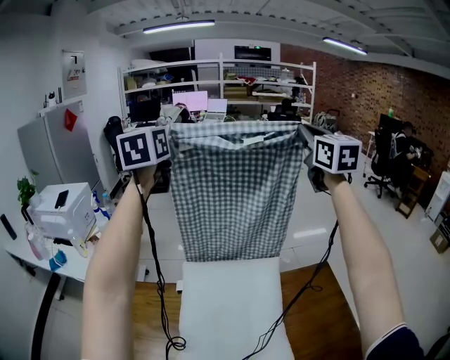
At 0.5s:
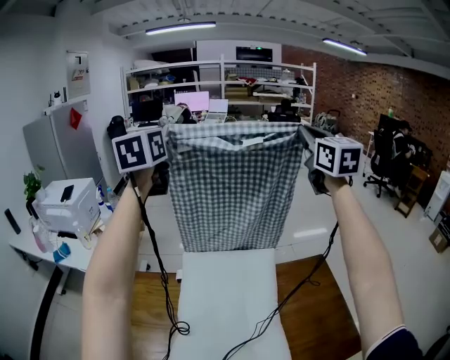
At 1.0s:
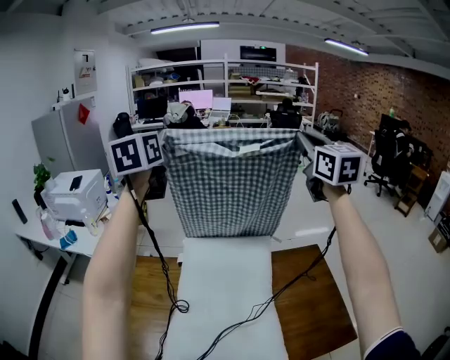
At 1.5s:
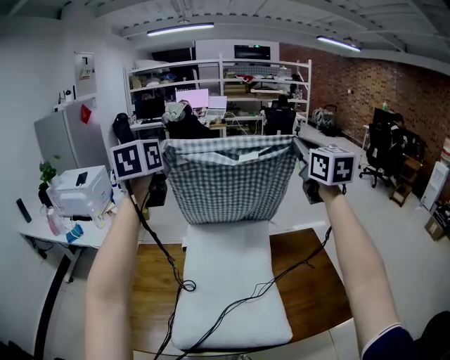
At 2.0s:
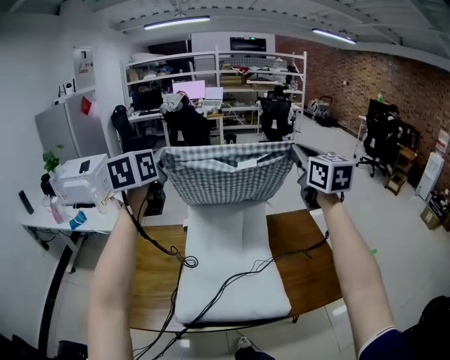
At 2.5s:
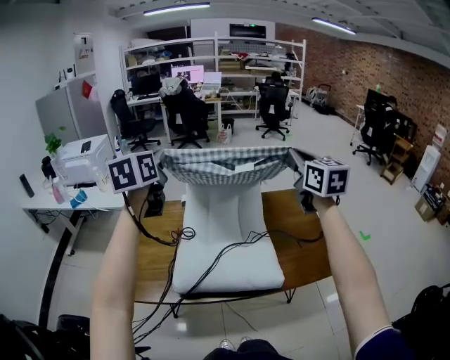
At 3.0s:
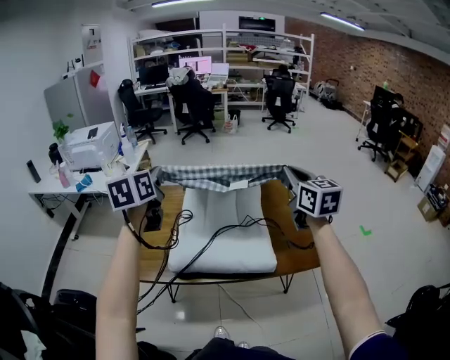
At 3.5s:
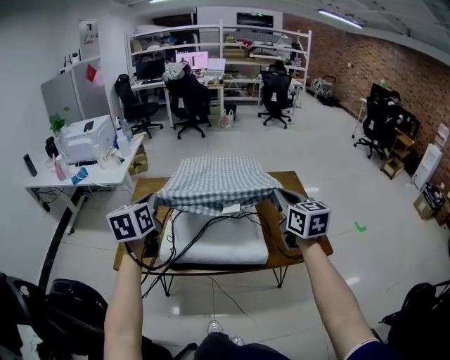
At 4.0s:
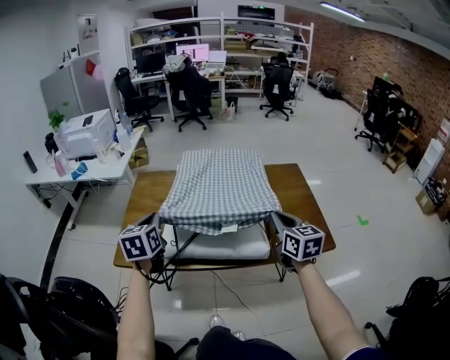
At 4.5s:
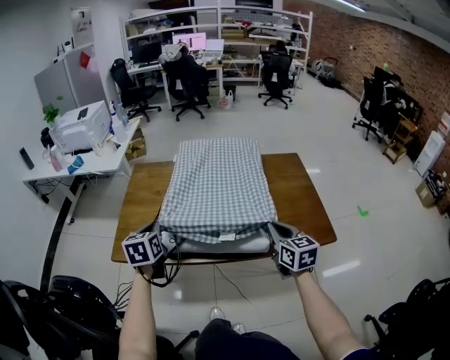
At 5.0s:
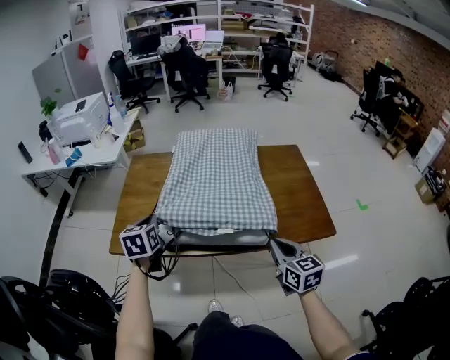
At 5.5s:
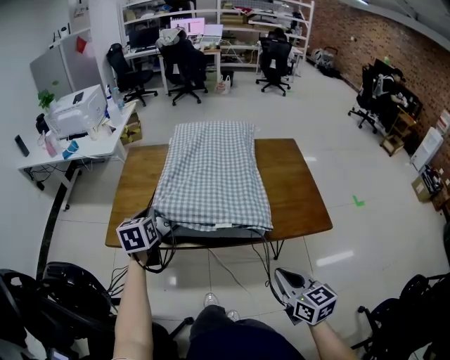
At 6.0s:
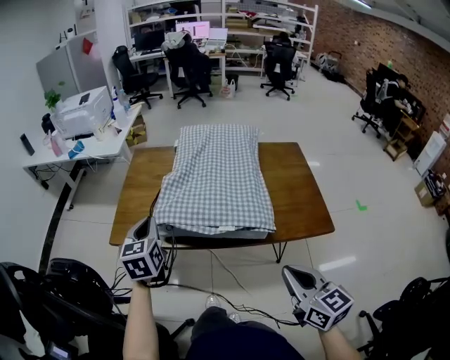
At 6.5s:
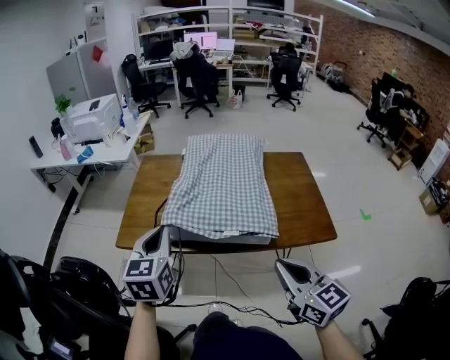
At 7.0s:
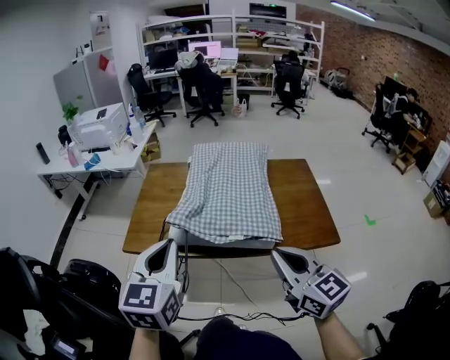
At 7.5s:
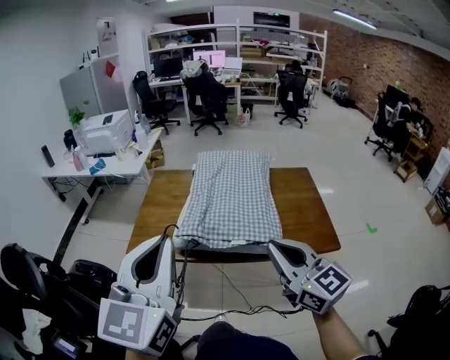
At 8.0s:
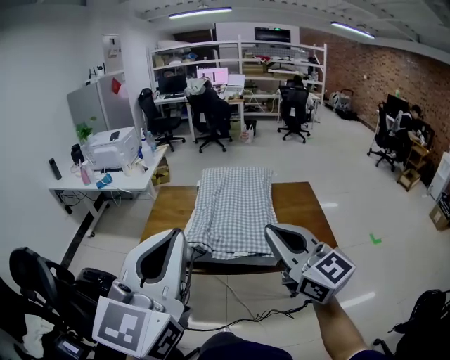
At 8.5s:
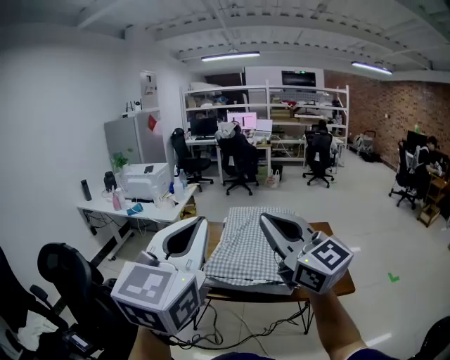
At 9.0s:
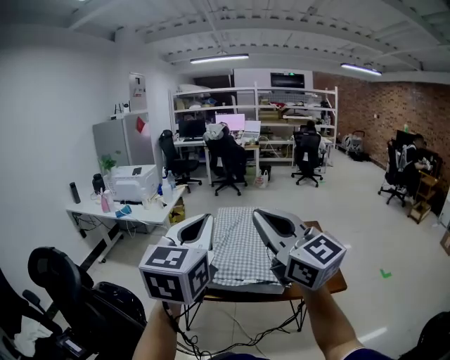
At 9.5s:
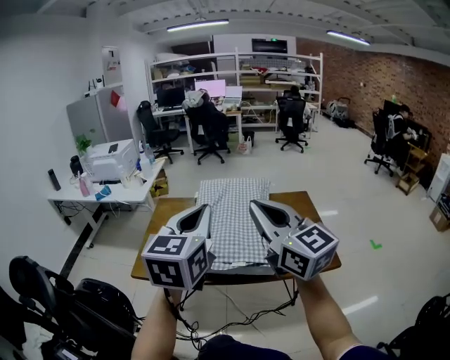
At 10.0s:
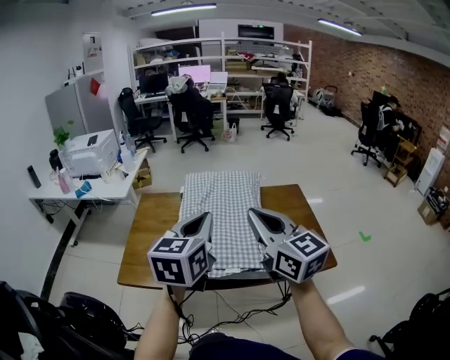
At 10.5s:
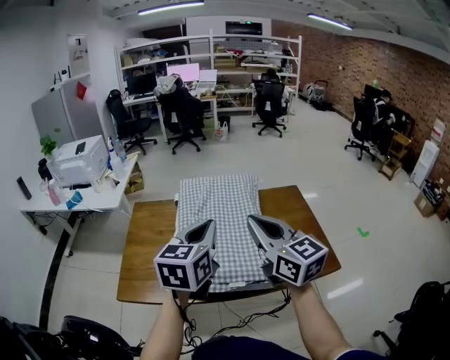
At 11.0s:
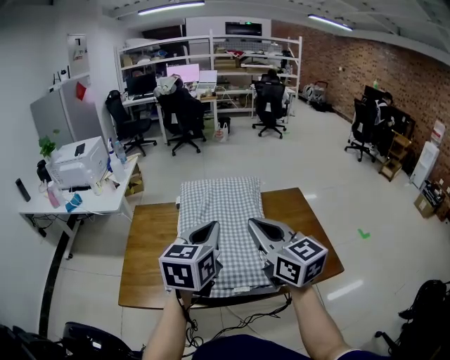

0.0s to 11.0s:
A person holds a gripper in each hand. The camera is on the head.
0.0s to 2.0s: Both grippers travel together backward, approximately 30 cm.
2.0s to 3.5s: Both grippers travel together downward and backward, some 30 cm.
3.5s to 5.5s: The right gripper heads backward and downward, covering some 30 cm. The left gripper heads downward, covering roughly 15 cm.
5.5s to 7.5s: The left gripper is displaced upward and backward by about 40 cm, and points its fingers some 30 degrees further upward, while the right gripper is displaced upward by roughly 20 cm, and rotates approximately 30 degrees.
7.5s to 9.0s: The right gripper goes approximately 20 cm upward, and swivels about 20 degrees. Meanwhile the left gripper is displaced upward and to the right by roughly 10 cm.
9.0s to 11.0s: The grippers both shift forward and downward by about 25 cm. The left gripper turns by roughly 30 degrees. Meanwhile the right gripper rotates some 30 degrees.

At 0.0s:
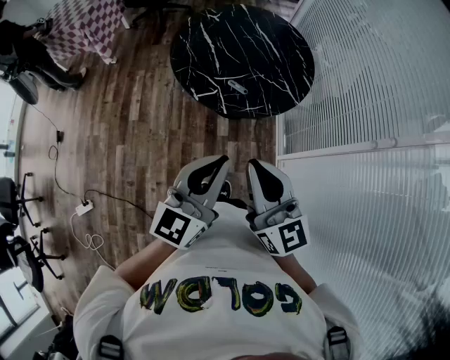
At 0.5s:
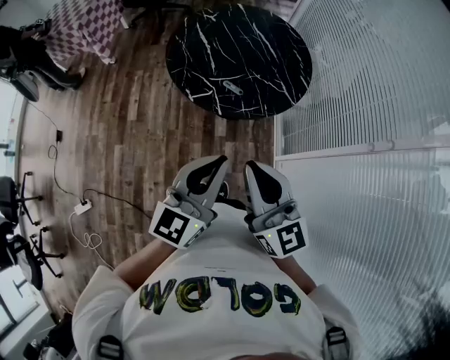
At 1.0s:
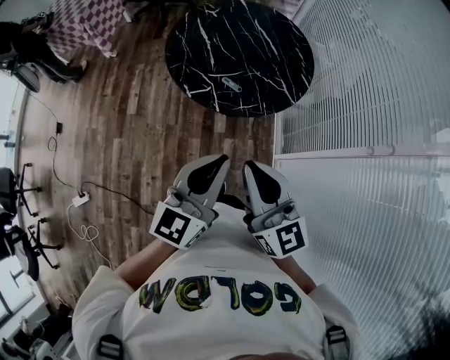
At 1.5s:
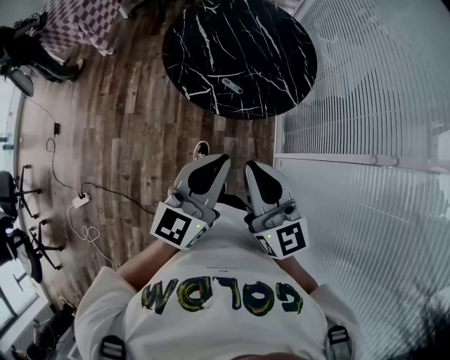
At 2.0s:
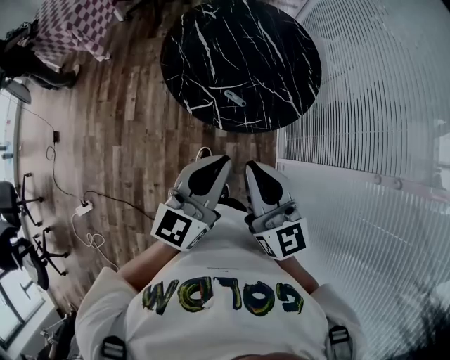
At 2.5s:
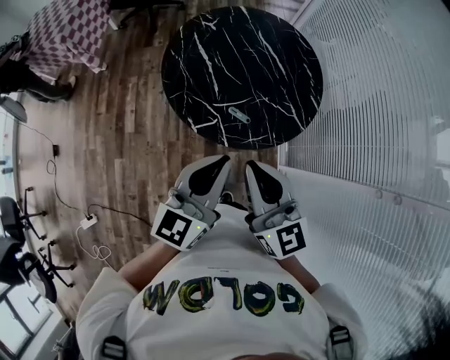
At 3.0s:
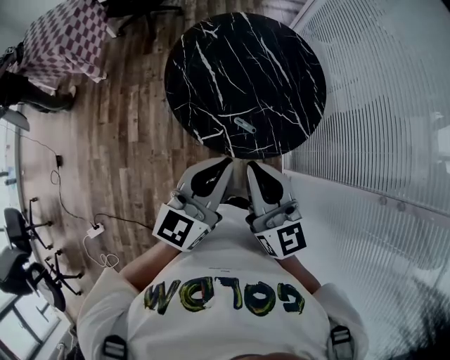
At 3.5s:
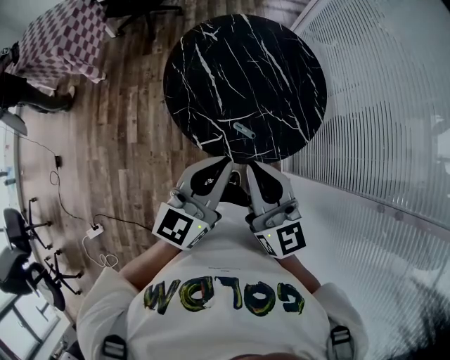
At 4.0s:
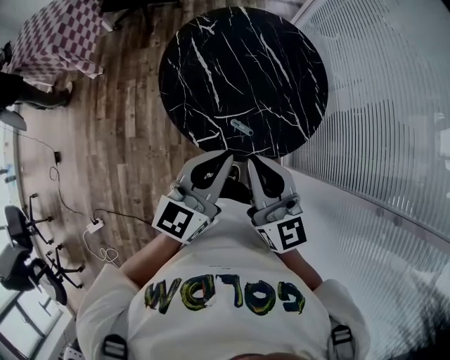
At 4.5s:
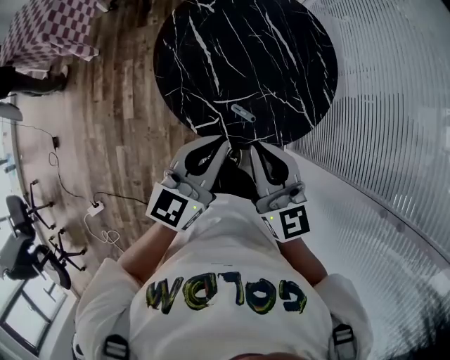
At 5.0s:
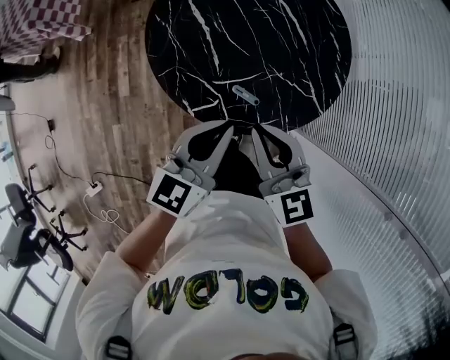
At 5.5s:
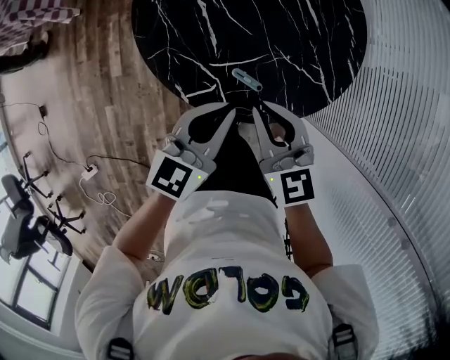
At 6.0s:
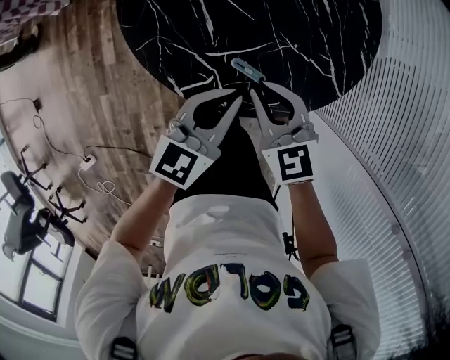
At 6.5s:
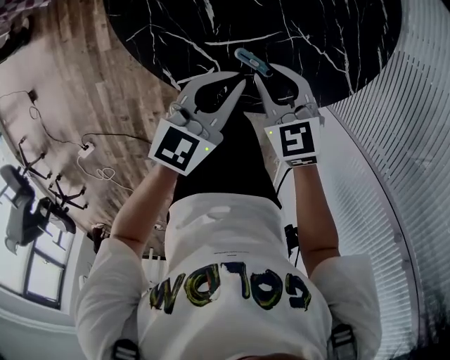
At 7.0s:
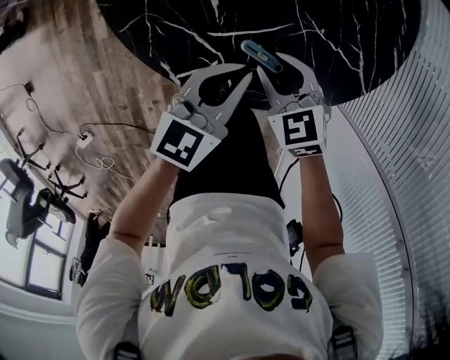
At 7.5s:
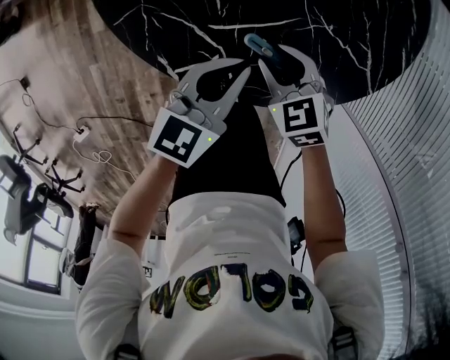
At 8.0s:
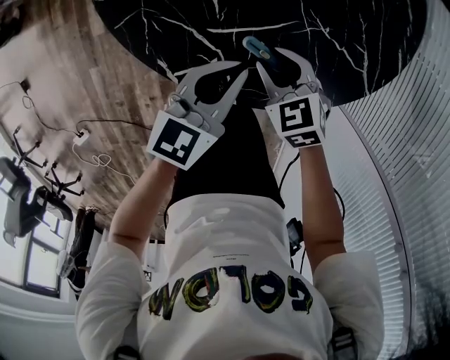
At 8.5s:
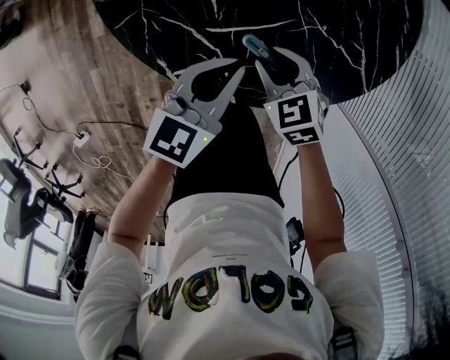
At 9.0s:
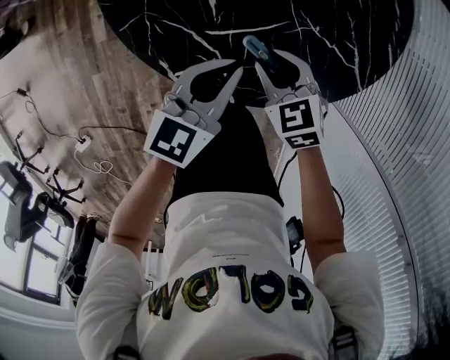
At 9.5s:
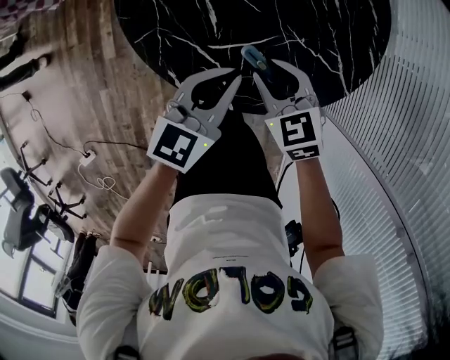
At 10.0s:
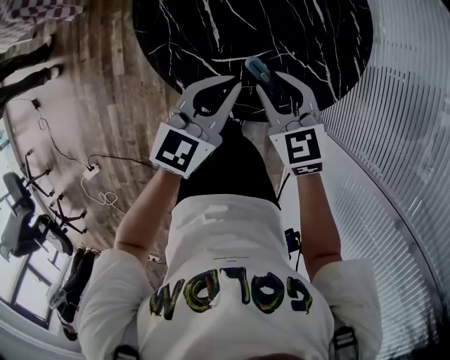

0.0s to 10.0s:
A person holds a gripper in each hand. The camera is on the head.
0.0s to 2.0s: Both grippers move forward, roughly 15 cm.
2.0s to 4.0s: The grippers both shift forward by some 15 cm.
4.0s to 6.0s: The two grippers go roughly 25 cm downward. The right gripper points its fingers approximately 30 degrees further downward.
6.0s to 8.0s: The right gripper goes roughly 15 cm downward, swivels roughly 20 degrees, and opens up. Meanwhile the left gripper travels downward by about 10 cm.
8.0s to 10.0s: The two grippers go roughly 15 cm upward. The right gripper rotates roughly 20 degrees.

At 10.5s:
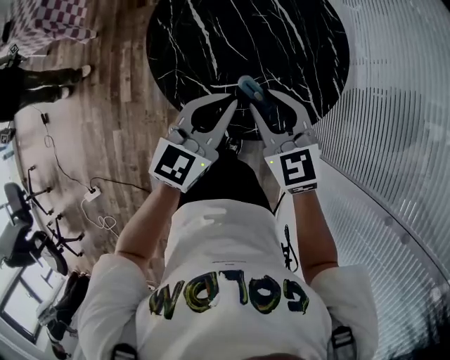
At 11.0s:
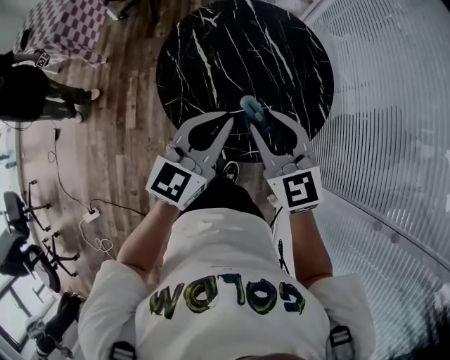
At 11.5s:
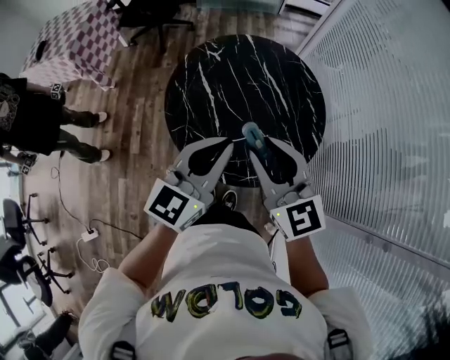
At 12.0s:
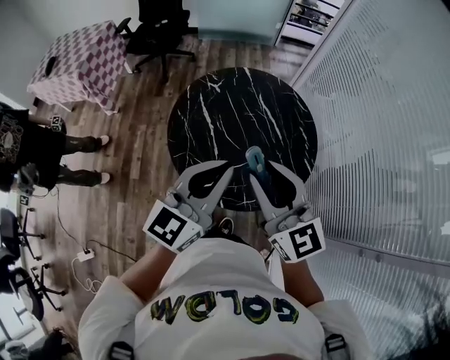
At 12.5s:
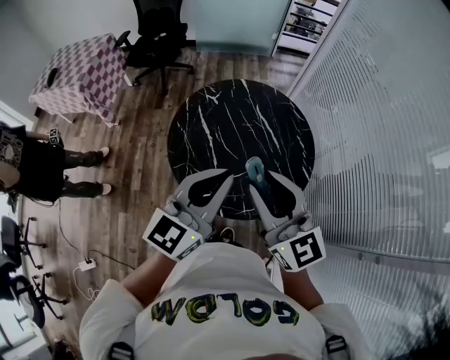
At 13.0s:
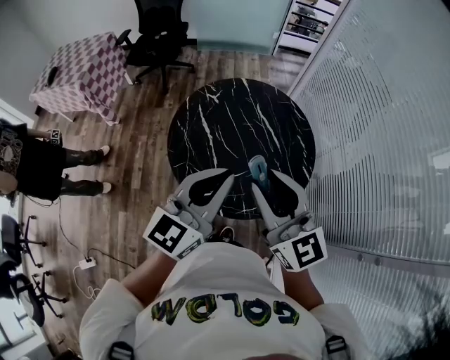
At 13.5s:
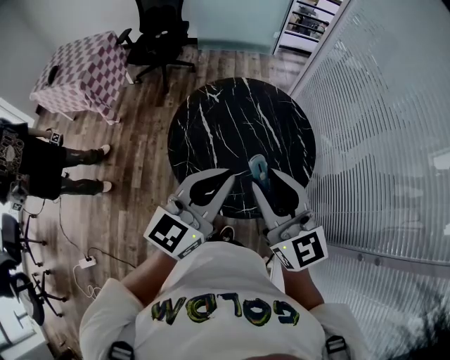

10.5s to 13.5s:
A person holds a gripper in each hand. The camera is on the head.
10.5s to 12.0s: Both grippers travel together upward, some 20 cm. The right gripper rotates roughly 30 degrees.
12.0s to 13.5s: The grippers make only small movements.

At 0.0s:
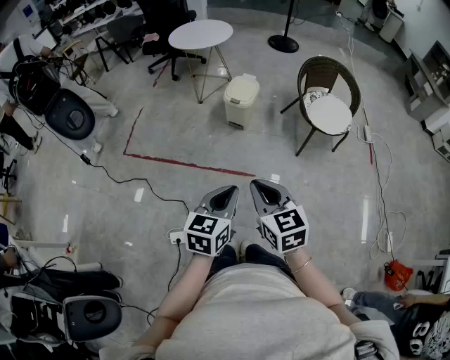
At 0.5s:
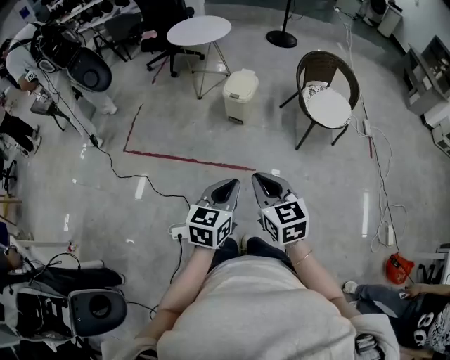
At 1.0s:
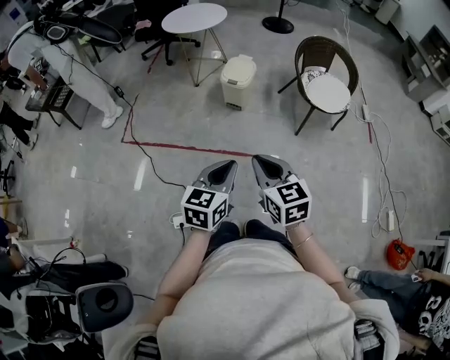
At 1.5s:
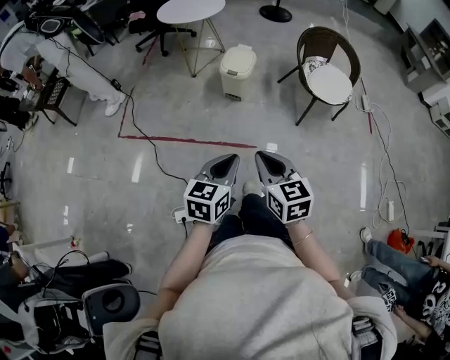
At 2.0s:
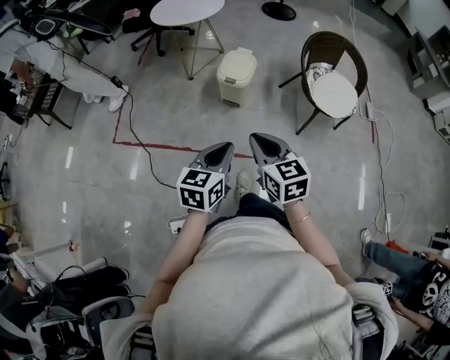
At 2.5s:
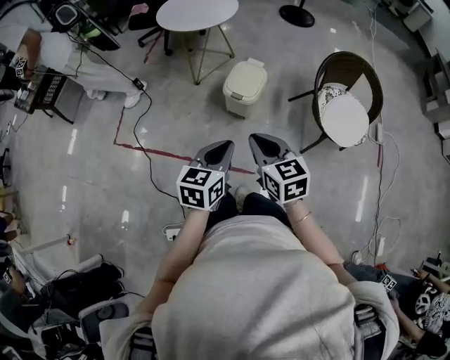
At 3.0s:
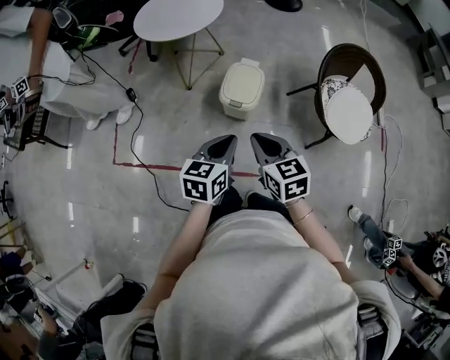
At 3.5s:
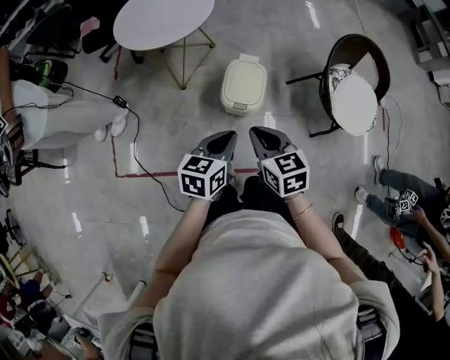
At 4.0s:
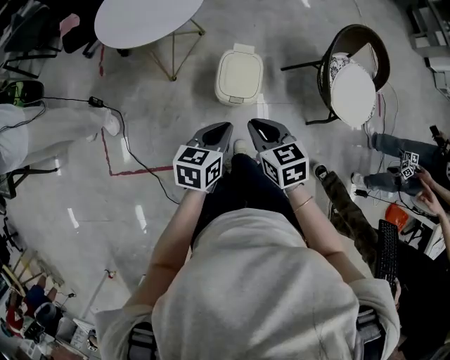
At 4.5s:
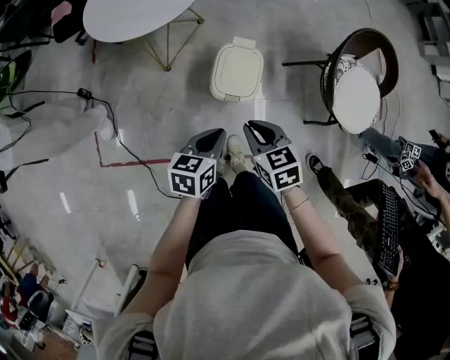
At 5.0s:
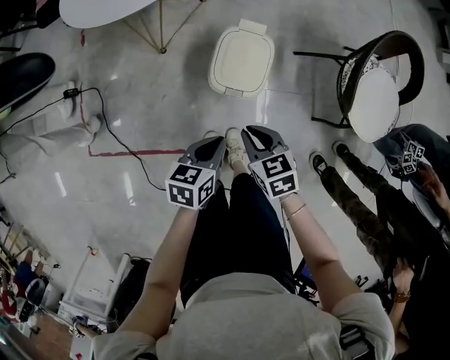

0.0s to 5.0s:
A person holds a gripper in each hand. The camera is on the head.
0.0s to 2.5s: The grippers both shift forward by some 35 cm.
2.5s to 5.0s: The two grippers go approximately 40 cm forward and downward. The left gripper swivels approximately 30 degrees. Meanwhile the right gripper swivels about 30 degrees.
